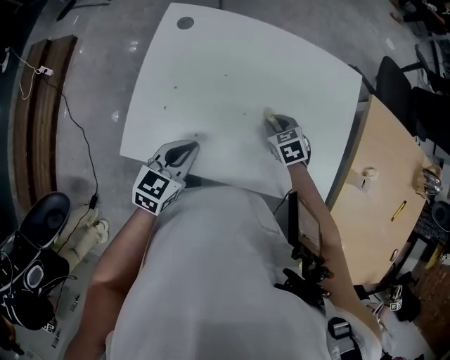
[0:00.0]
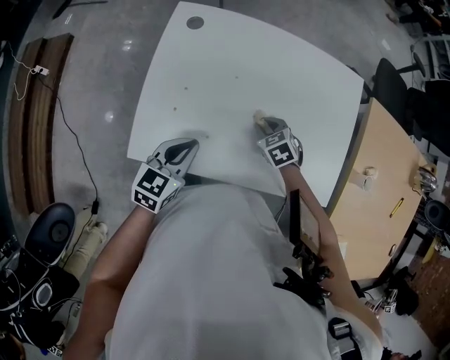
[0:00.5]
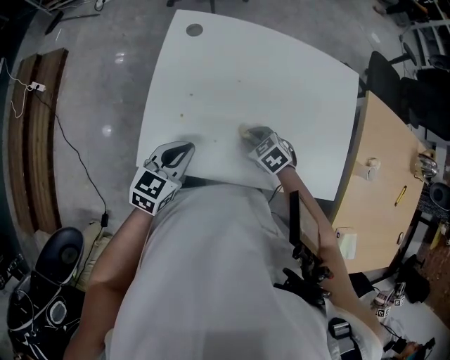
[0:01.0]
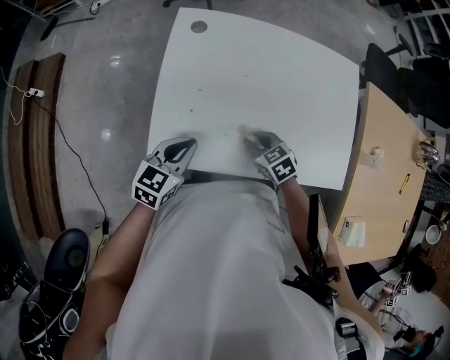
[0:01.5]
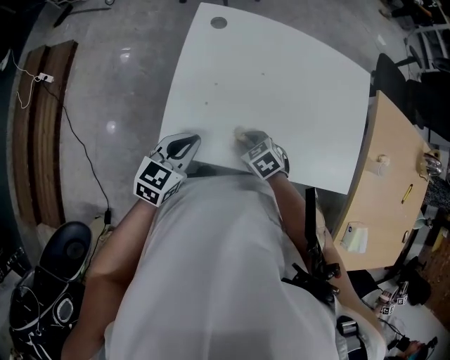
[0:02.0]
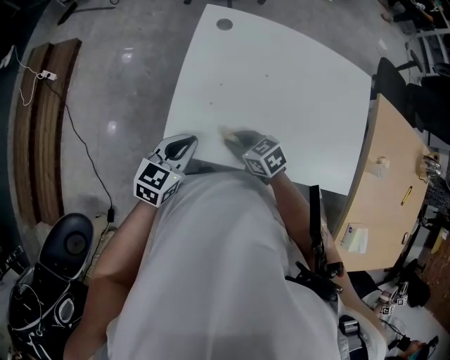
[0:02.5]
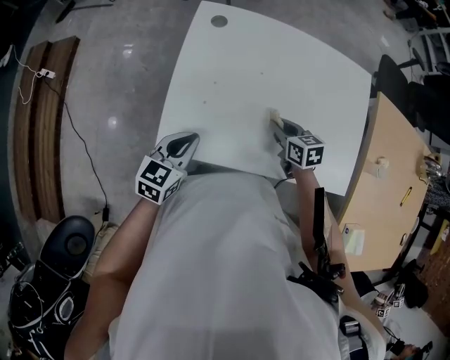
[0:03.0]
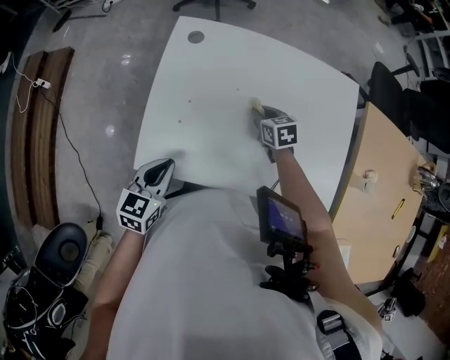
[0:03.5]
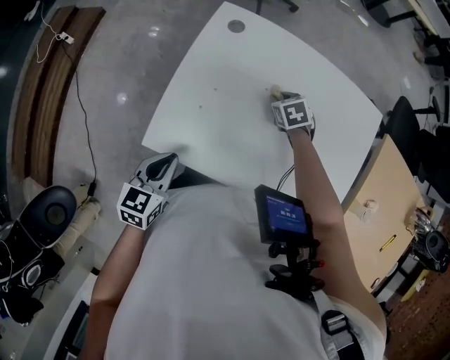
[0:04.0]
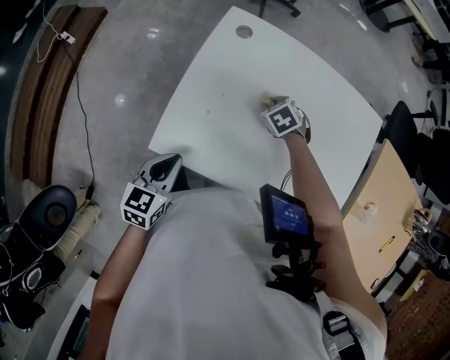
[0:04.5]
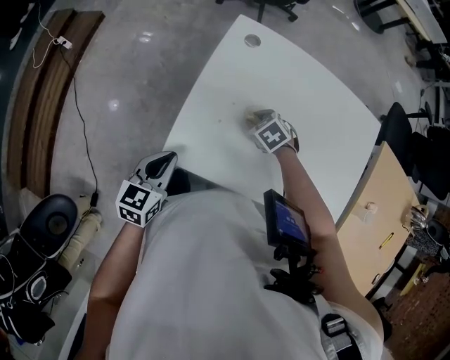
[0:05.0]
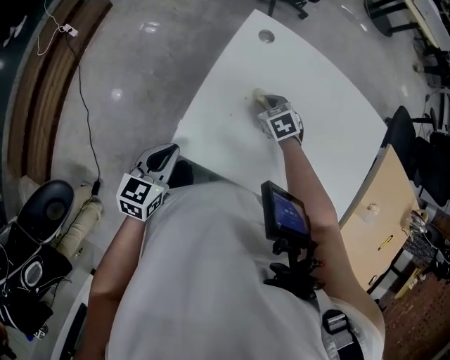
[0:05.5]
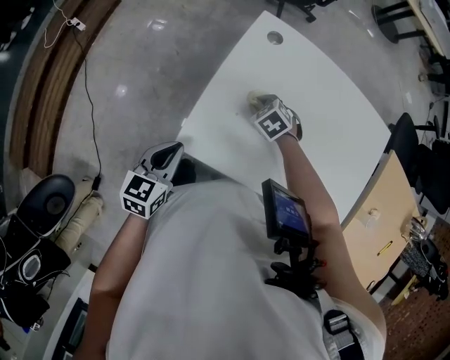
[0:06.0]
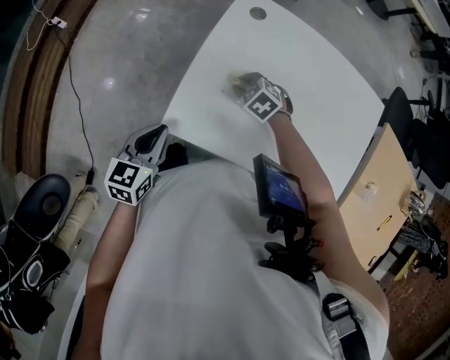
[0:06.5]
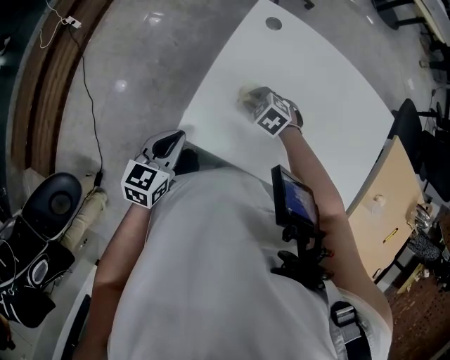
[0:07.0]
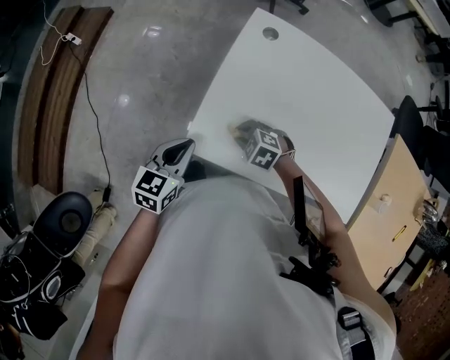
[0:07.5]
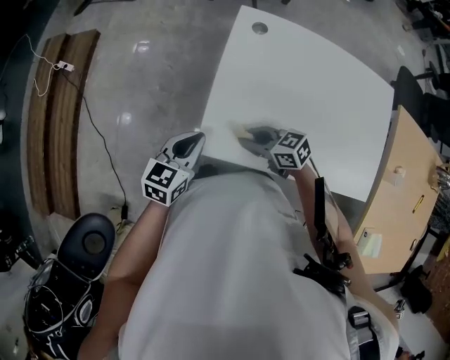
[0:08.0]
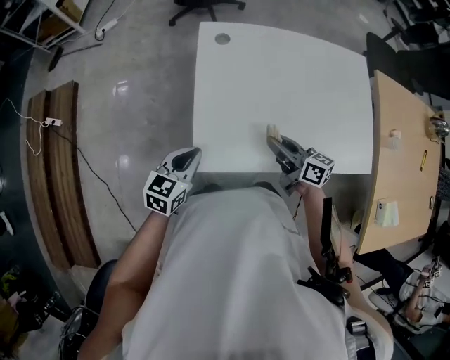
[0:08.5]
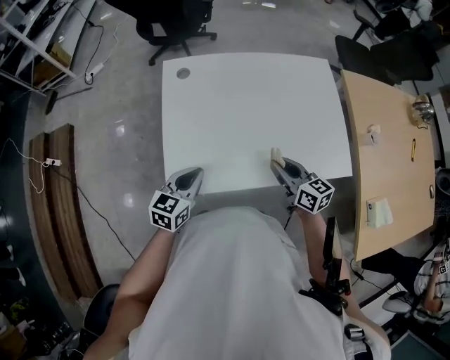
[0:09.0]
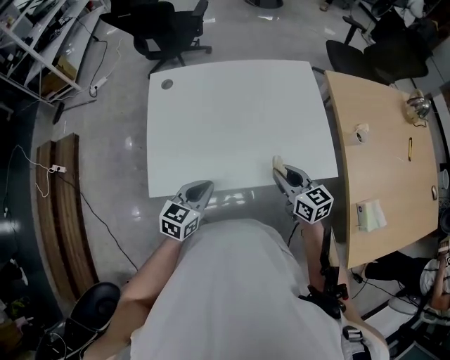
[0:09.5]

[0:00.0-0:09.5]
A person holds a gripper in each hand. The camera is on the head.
0:00.0 to 0:02.0: The right gripper heads to the left and backward, covering approximately 25 cm, while the left gripper goes about 15 cm to the left.
0:02.0 to 0:04.0: The left gripper turns by roughly 20 degrees; the right gripper travels forward and to the right by approximately 25 cm.
0:04.0 to 0:05.5: The right gripper shifts about 15 cm to the left, while the left gripper travels to the left by about 10 cm.
0:05.5 to 0:07.5: The right gripper goes about 20 cm backward and to the left, and rotates roughly 30 degrees.
0:07.5 to 0:09.5: The left gripper moves some 25 cm, and turns by roughly 30 degrees; the right gripper changes place by some 35 cm, and tilts its fingers about 40 degrees upward.

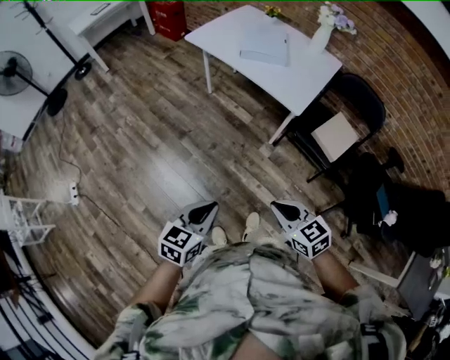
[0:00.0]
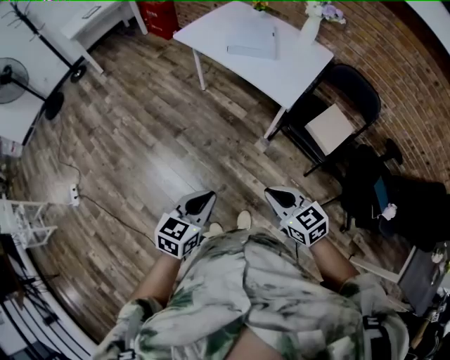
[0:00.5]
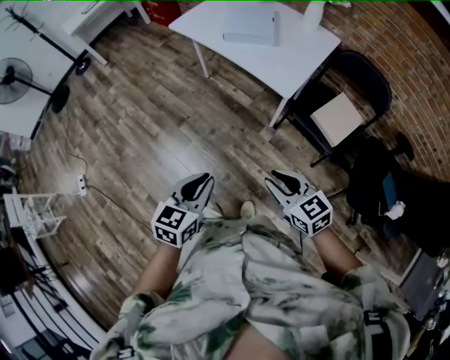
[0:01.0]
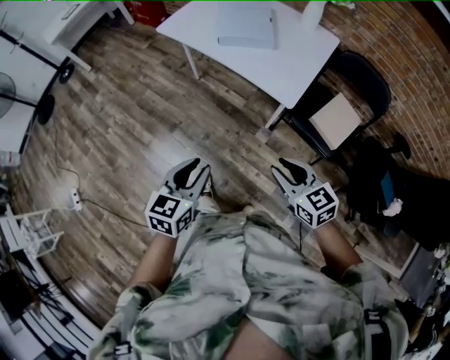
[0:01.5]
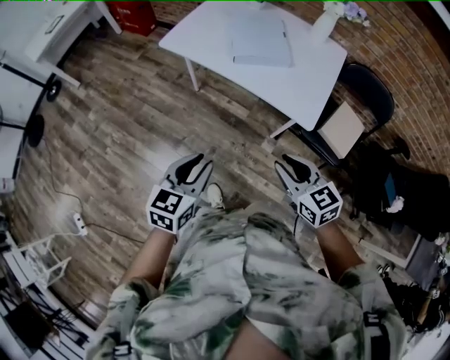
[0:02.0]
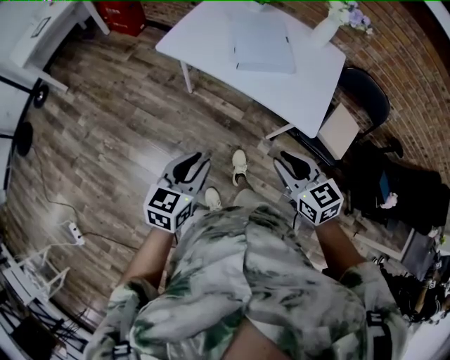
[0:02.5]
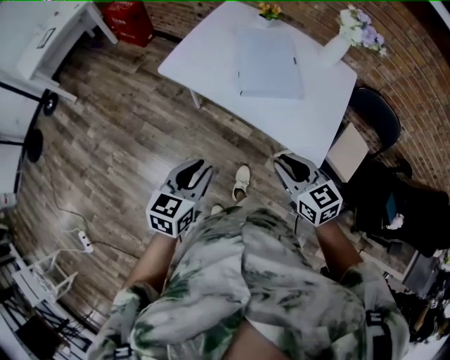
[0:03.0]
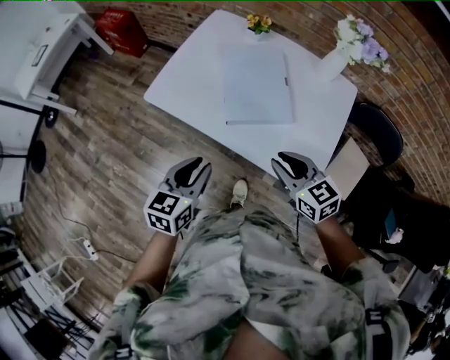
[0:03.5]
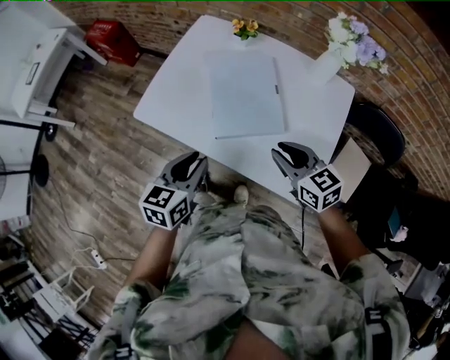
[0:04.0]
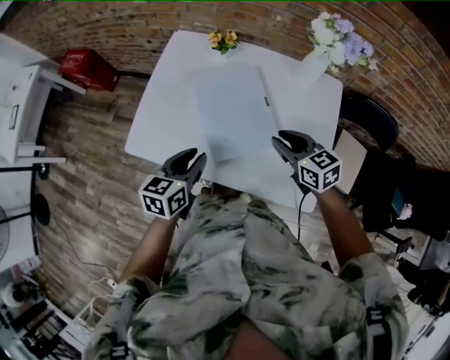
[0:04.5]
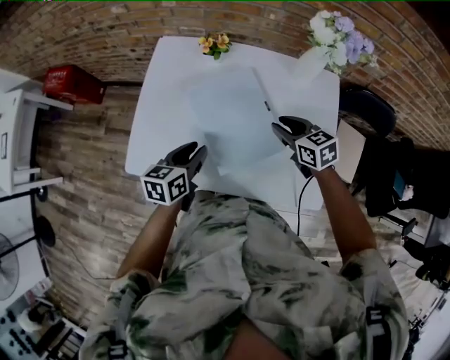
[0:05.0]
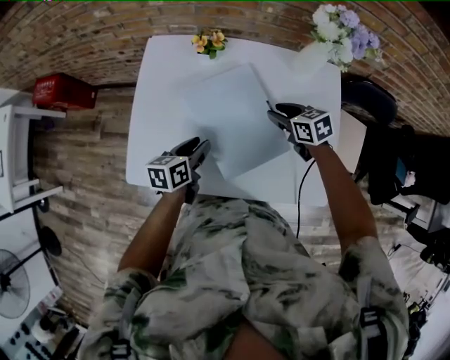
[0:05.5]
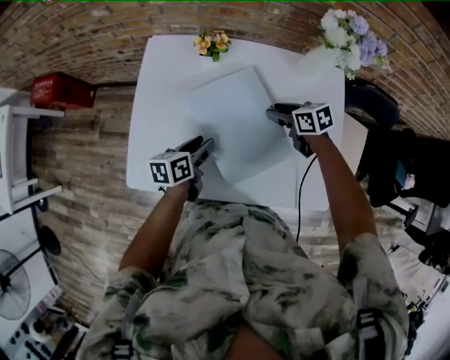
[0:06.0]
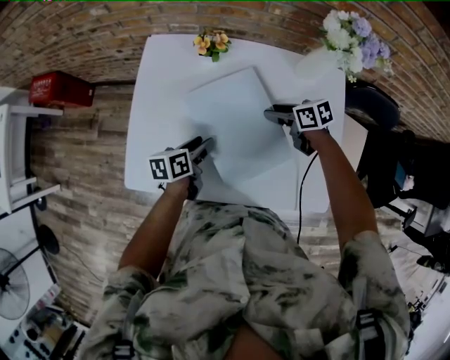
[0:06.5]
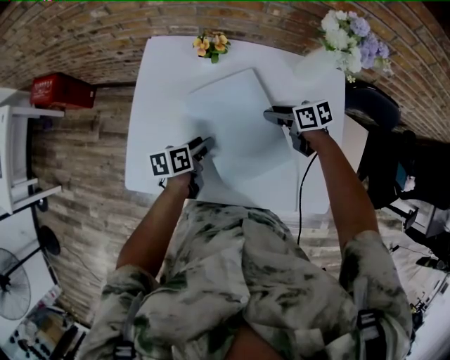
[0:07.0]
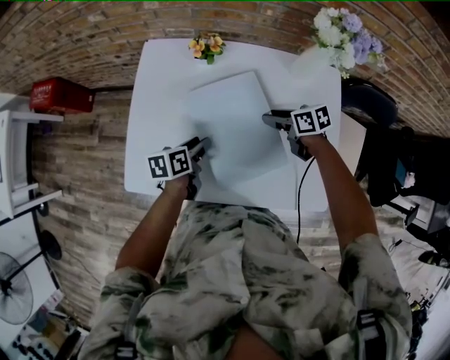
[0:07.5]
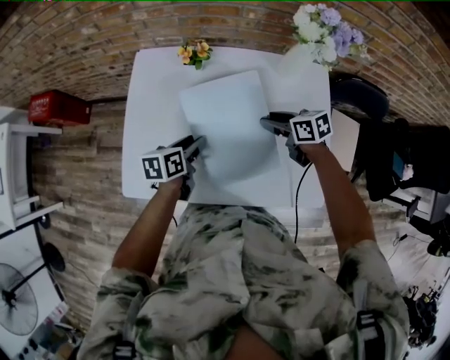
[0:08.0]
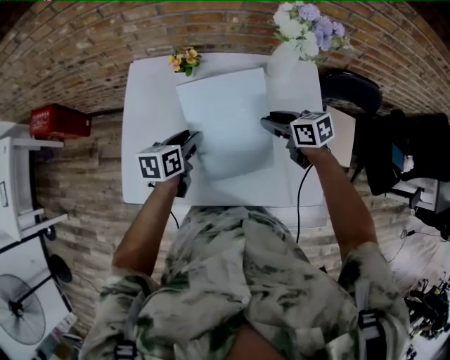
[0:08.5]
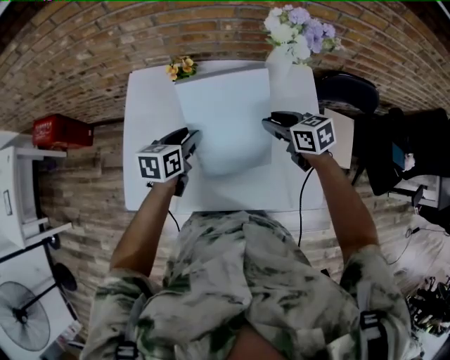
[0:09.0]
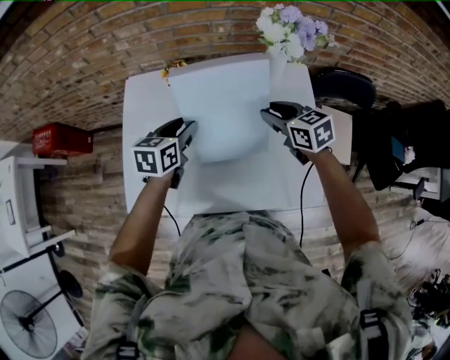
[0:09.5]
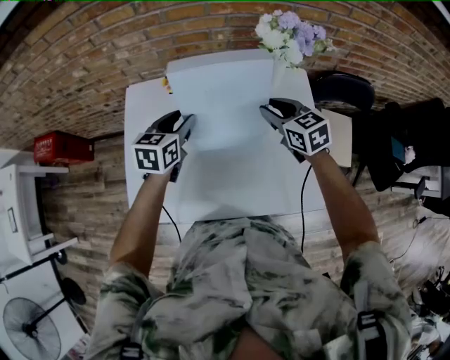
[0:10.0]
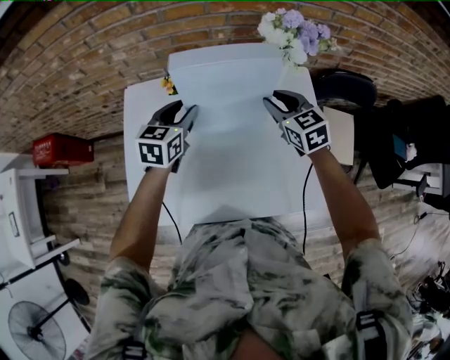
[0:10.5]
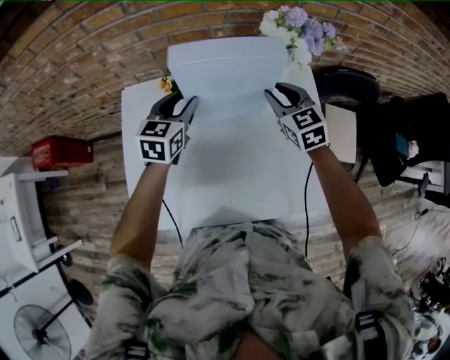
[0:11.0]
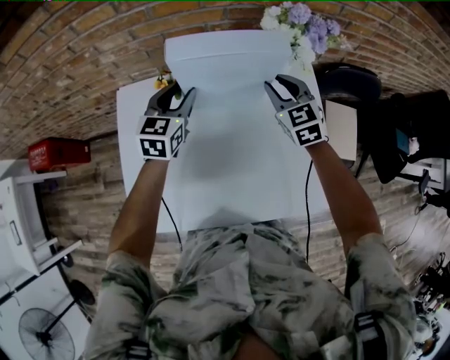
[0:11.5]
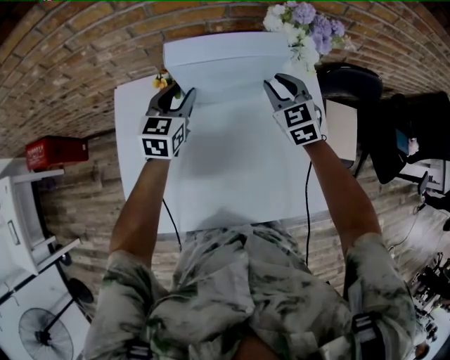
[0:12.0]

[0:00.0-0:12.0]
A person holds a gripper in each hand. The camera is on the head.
0:00.0 to 0:02.0: Both grippers travel together forward, about 35 cm. The right gripper opens up.
0:02.0 to 0:04.0: The pair of grippers is taken forward, roughly 40 cm.
0:04.0 to 0:06.0: Both grippers move forward and downward, some 30 cm. The right gripper swivels roughly 30 degrees. Meanwhile the left gripper rotates approximately 30 degrees.
0:06.0 to 0:08.0: The right gripper moves roughly 5 cm.
0:08.0 to 0:10.0: The left gripper moves upward and forward, some 15 cm, and turns by some 30 degrees. The right gripper is displaced upward by some 10 cm, and swivels about 30 degrees.
0:10.0 to 0:12.0: Both grippers move forward, approximately 10 cm. The right gripper turns by about 30 degrees.

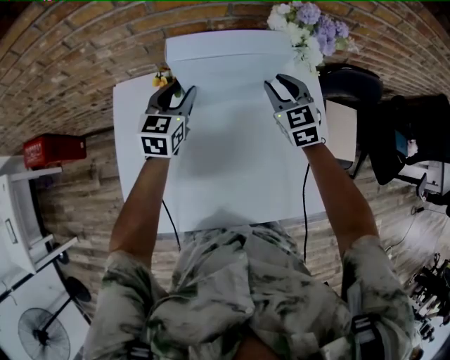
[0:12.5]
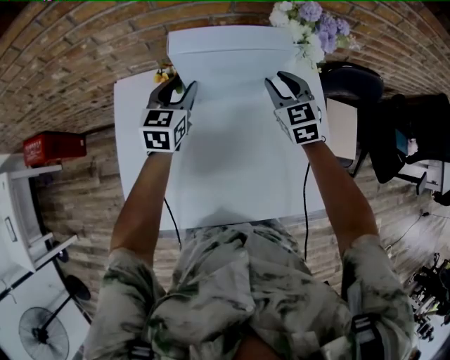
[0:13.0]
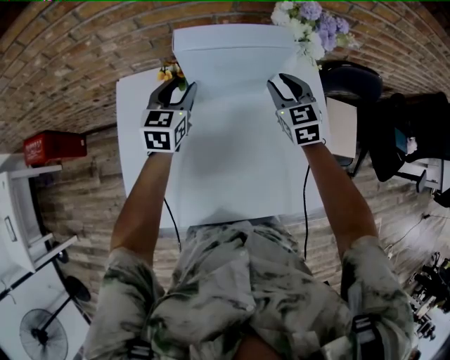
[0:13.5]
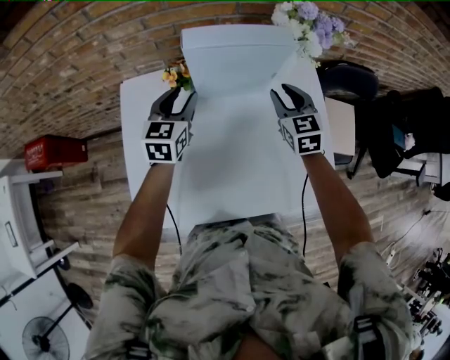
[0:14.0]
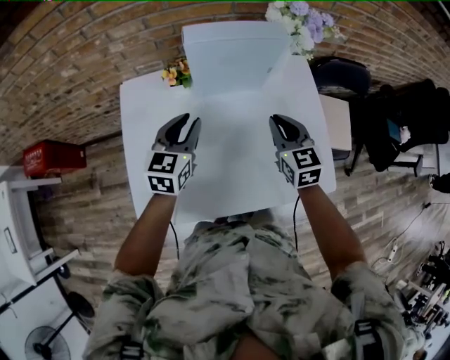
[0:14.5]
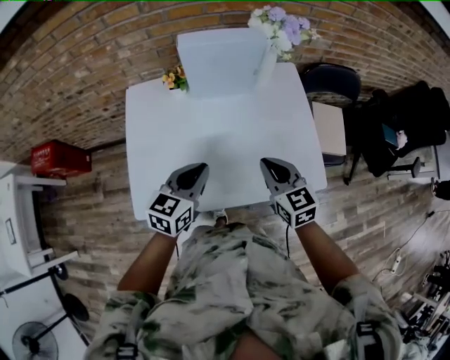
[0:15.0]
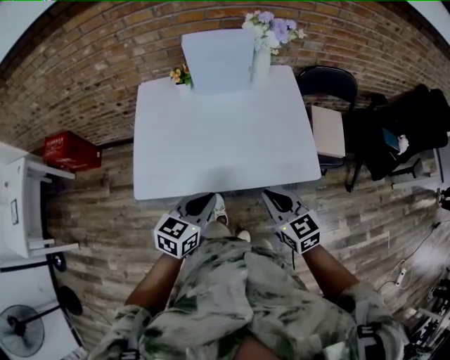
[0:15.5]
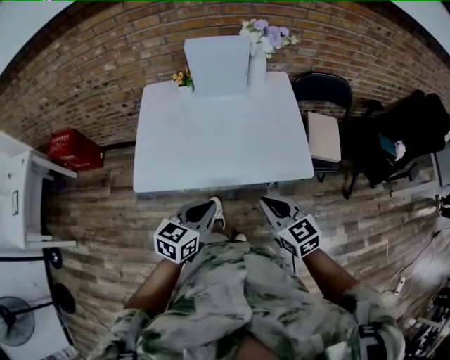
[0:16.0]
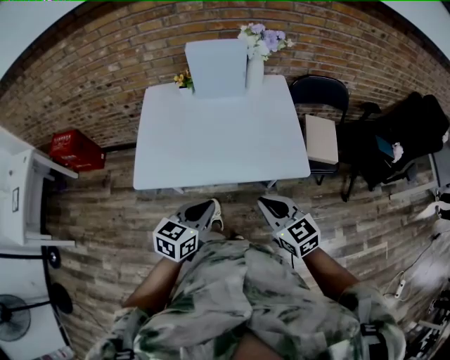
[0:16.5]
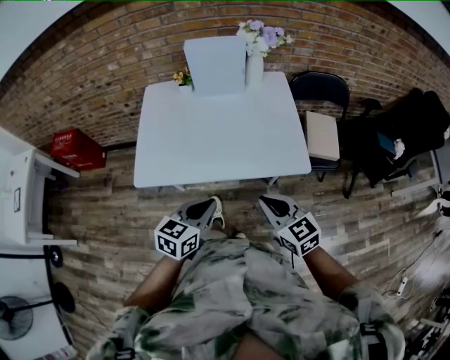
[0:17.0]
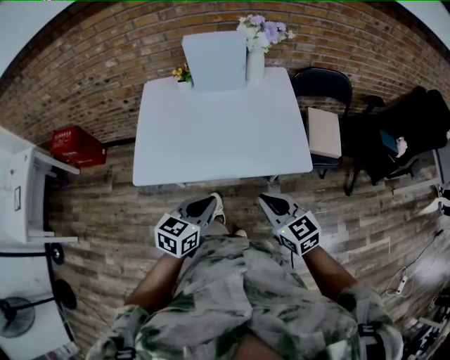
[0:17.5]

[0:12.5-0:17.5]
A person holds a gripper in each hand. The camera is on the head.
0:12.5 to 0:15.0: The grippers both shift backward by roughly 35 cm. The right gripper closes its fingers. The left gripper closes.
0:15.0 to 0:17.5: Both grippers move backward, about 25 cm.
